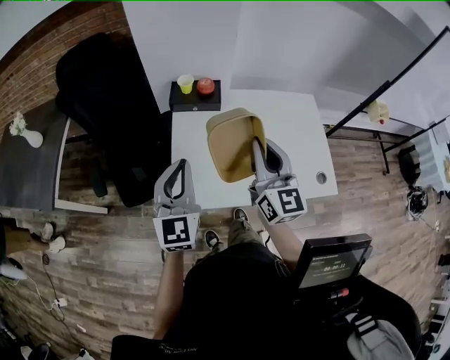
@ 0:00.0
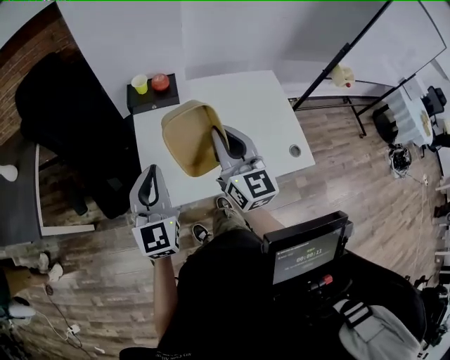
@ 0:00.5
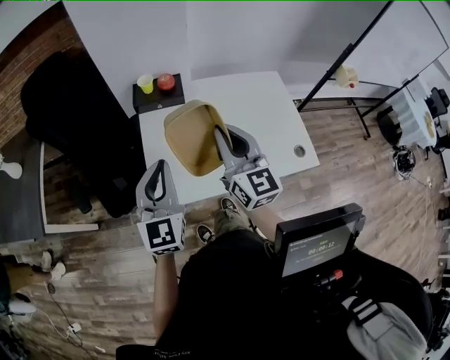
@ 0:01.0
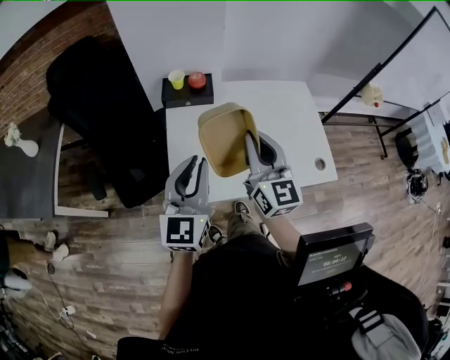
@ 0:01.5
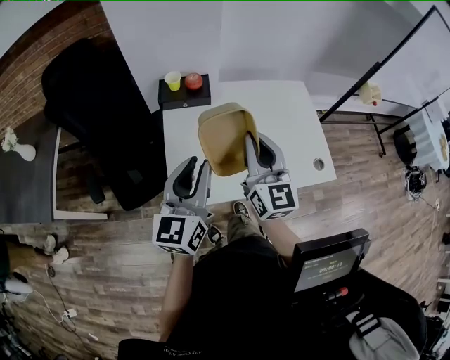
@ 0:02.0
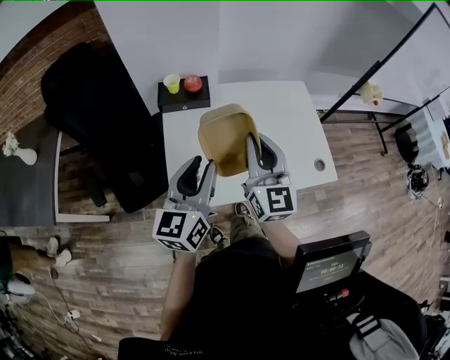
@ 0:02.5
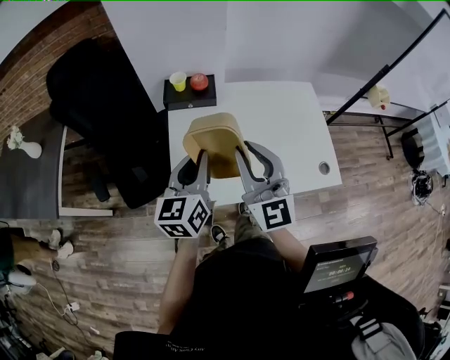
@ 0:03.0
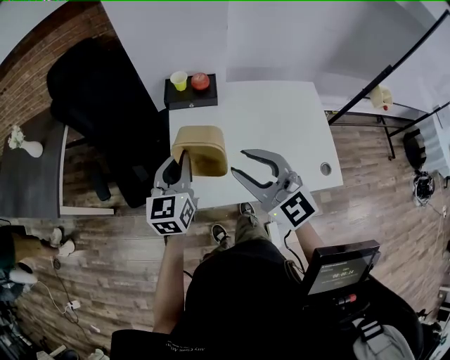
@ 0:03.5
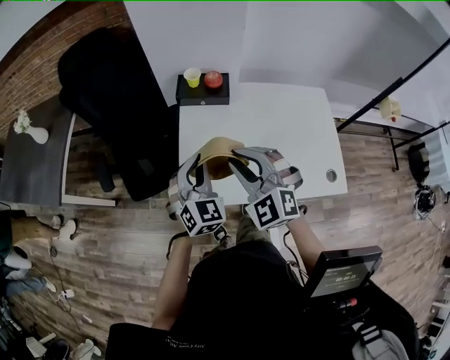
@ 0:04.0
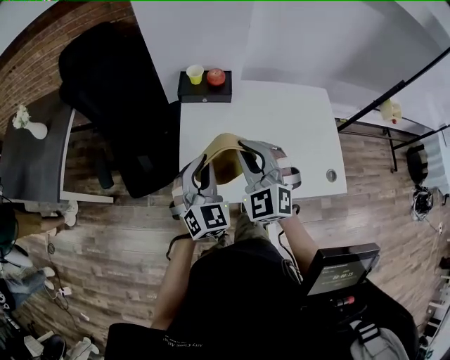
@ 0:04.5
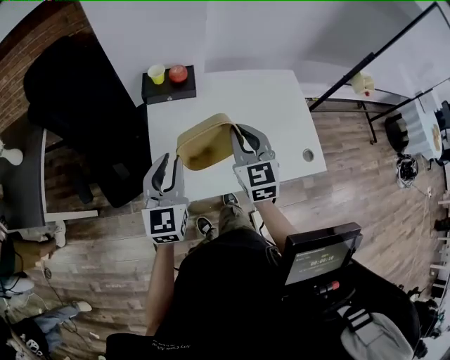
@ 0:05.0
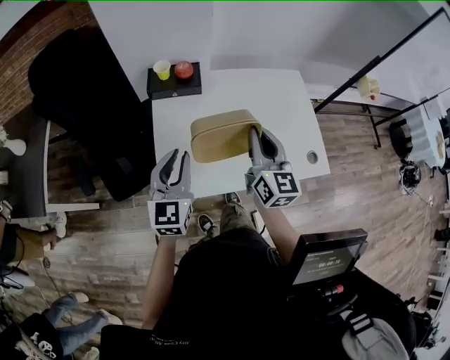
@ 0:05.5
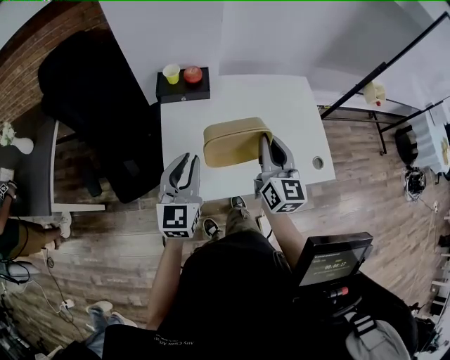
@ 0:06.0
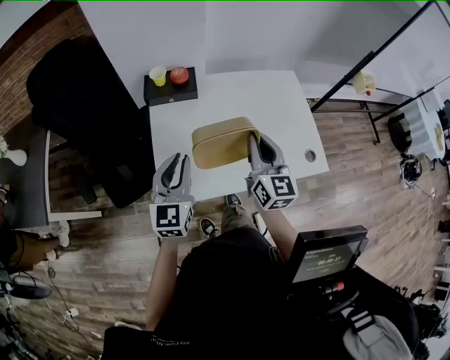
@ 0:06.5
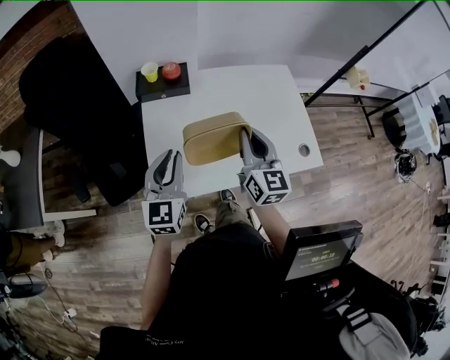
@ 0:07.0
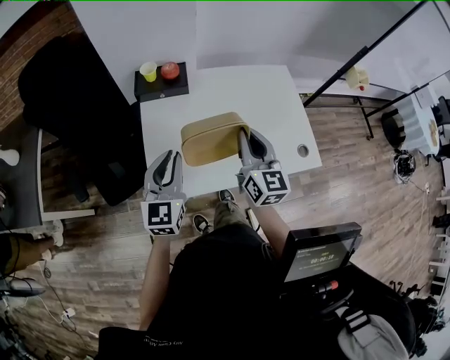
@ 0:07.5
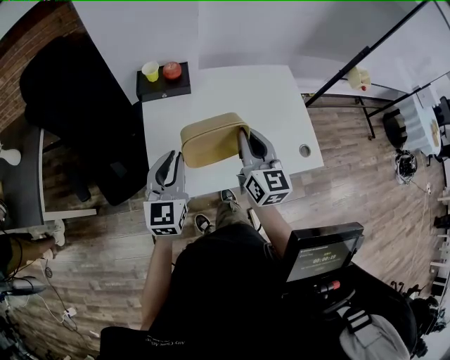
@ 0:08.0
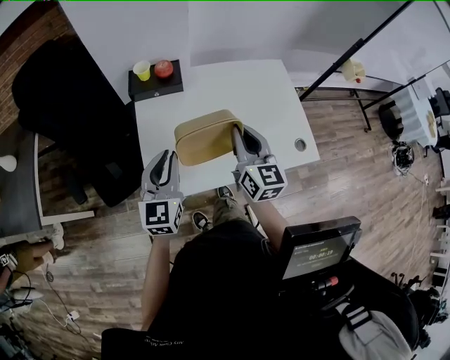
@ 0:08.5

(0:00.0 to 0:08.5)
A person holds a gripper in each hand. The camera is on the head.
0:00.0 - 0:02.0: The left gripper moves roughly 5 cm, and swivels approximately 30 degrees.
0:02.0 - 0:04.0: The right gripper is displaced to the left by approximately 10 cm, and rotates approximately 60 degrees. The left gripper heads downward and forward, covering roughly 10 cm, and rotates around the line of its fingers by some 40 degrees, clockwise from behind.
0:04.0 - 0:06.5: The left gripper rotates about 30 degrees; the right gripper is displaced to the right by some 15 cm, and rolls clockwise, seen from behind, by approximately 60 degrees.
0:06.5 - 0:08.5: The two grippers keep their place.

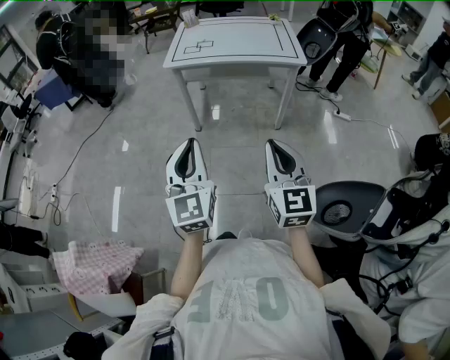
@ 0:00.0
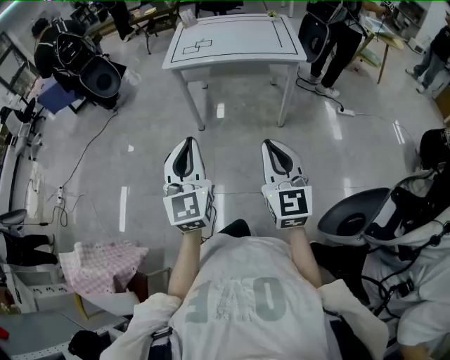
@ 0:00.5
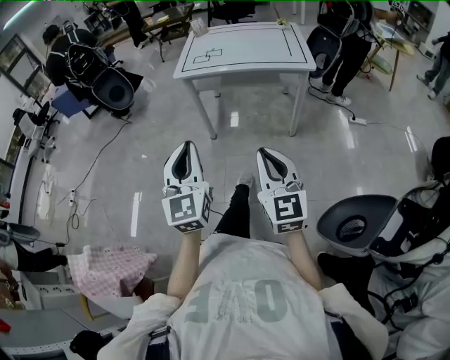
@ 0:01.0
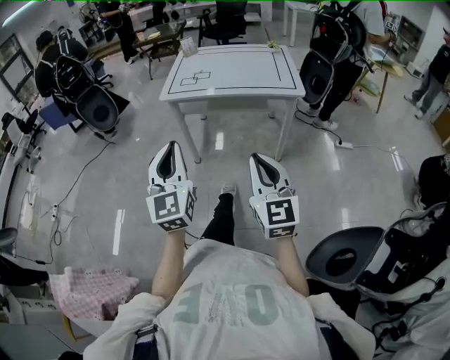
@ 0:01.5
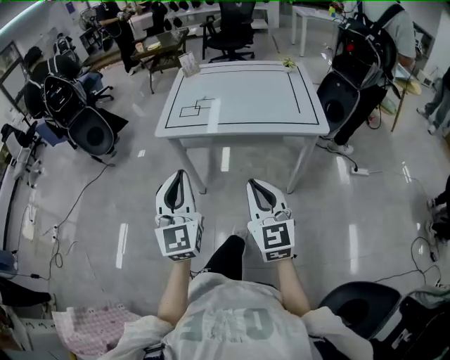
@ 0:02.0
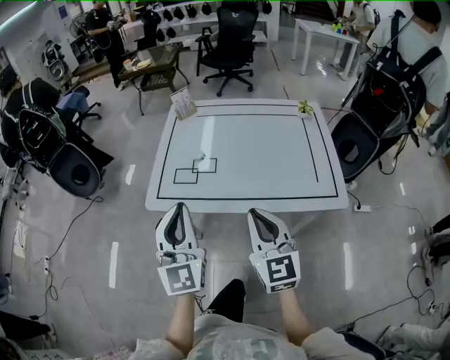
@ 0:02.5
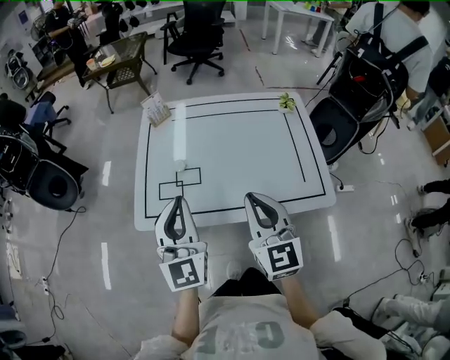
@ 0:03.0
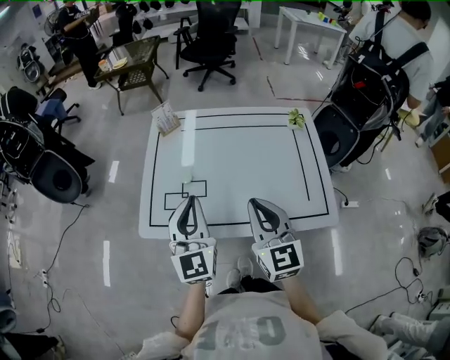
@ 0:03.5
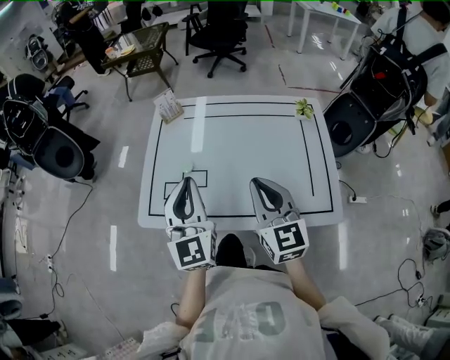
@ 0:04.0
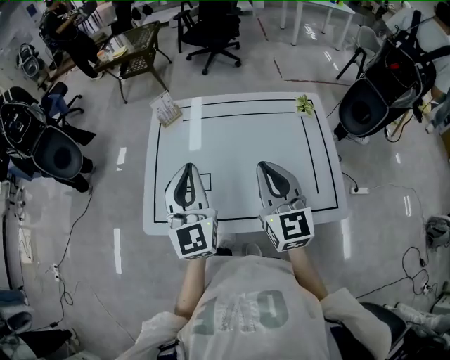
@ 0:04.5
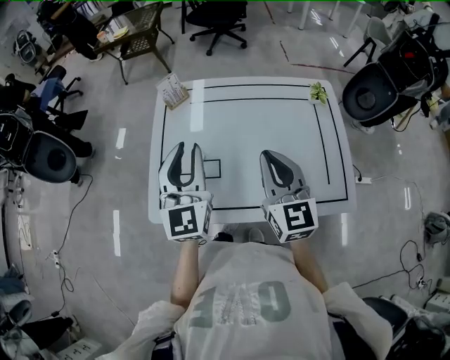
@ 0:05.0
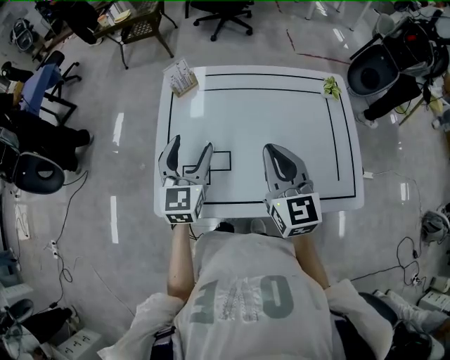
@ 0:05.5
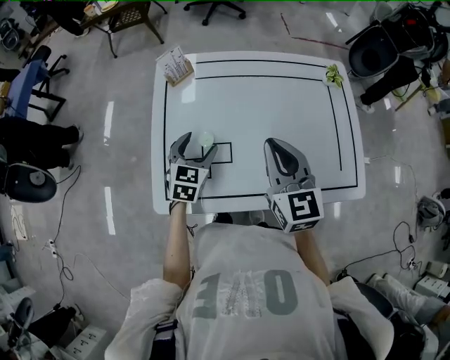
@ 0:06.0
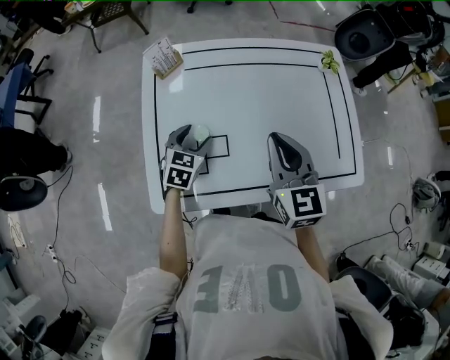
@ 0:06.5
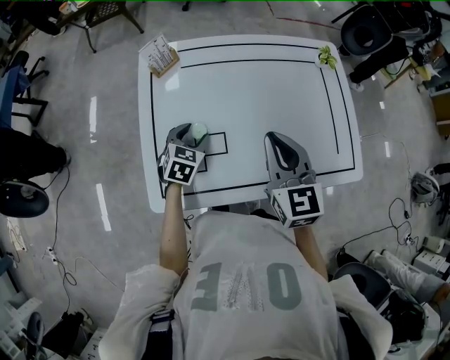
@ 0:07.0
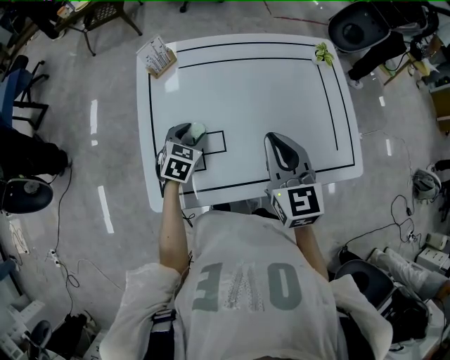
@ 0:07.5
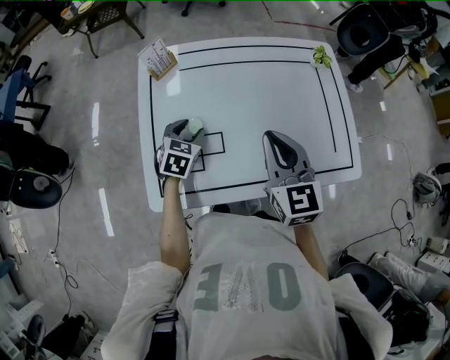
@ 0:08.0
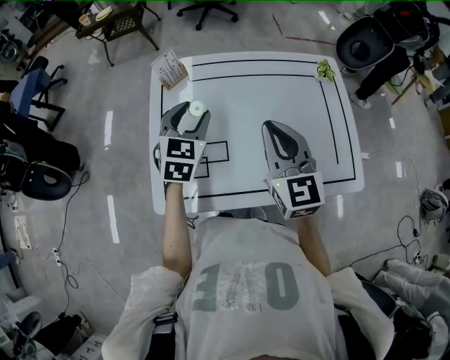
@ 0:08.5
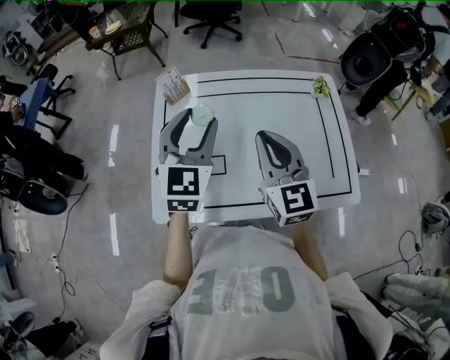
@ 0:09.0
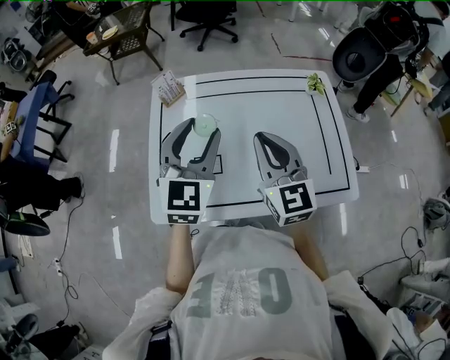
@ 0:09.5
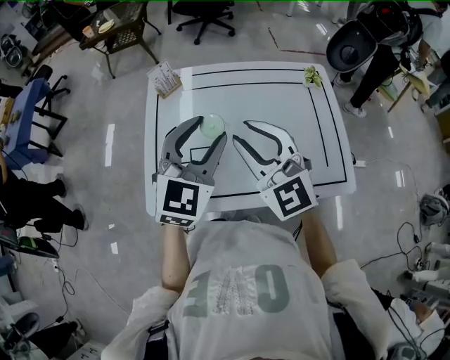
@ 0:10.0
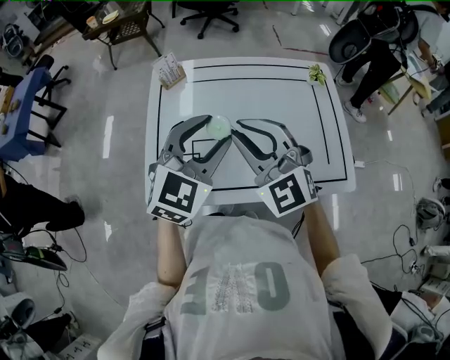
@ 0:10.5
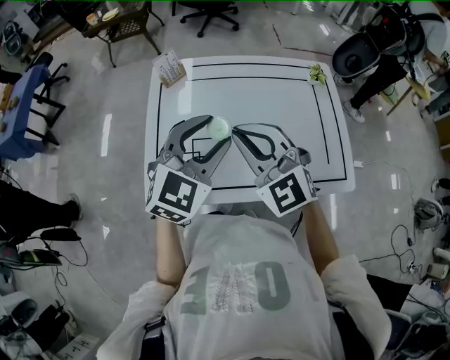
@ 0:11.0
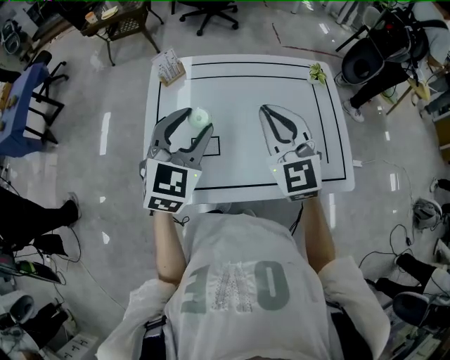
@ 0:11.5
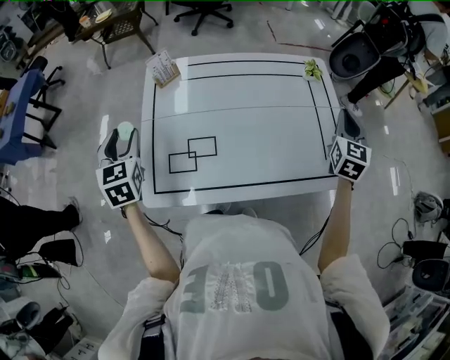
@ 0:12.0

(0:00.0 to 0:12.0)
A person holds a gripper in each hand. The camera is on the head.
0:00.0 - 0:02.0: Both grippers move forward, roughly 35 cm.
0:02.0 - 0:04.0: The pair of grippers is taken forward, roughly 40 cm.
0:04.0 - 0:06.0: The right gripper is displaced forward and to the left by about 10 cm, while the left gripper is displaced downward and forward by some 25 cm, tips its fingers downward by approximately 40 degrees, and opens up.
0:06.0 - 0:08.0: The grippers move only a little.
0:08.0 - 0:10.0: The left gripper moves upward, roughly 25 cm, and angles its fingers upward, by roughly 30 degrees, while the right gripper shifts about 10 cm upward, changes its angle by roughly 40 degrees, and opens up.
0:10.0 - 0:12.0: The right gripper shifts approximately 30 cm to the right, swivels roughly 50 degrees, and closes up, while the left gripper goes some 25 cm to the left, and changes its angle by some 40 degrees.

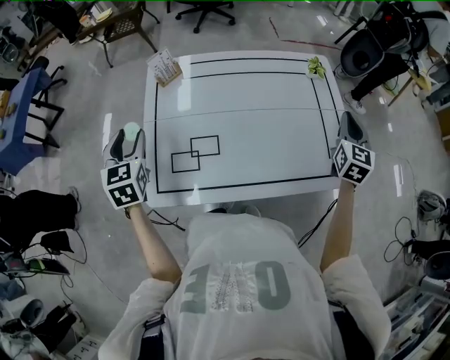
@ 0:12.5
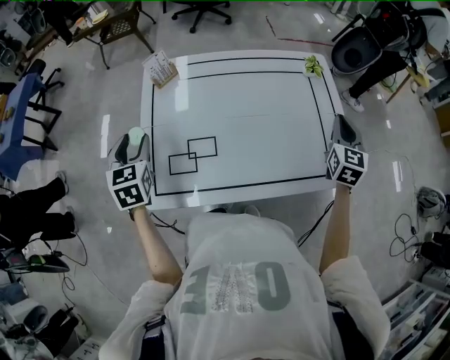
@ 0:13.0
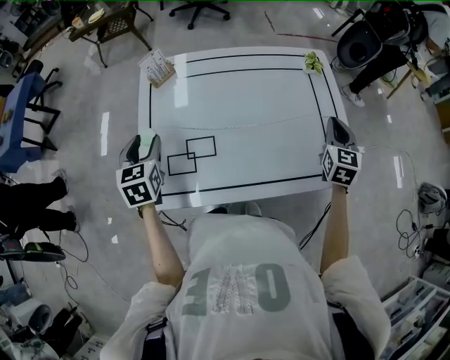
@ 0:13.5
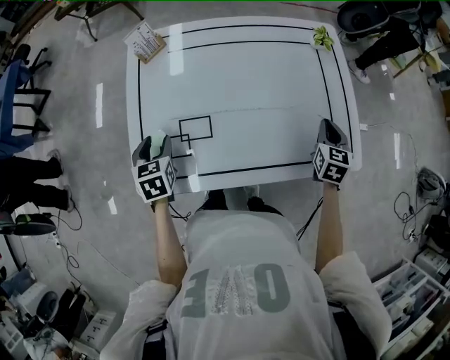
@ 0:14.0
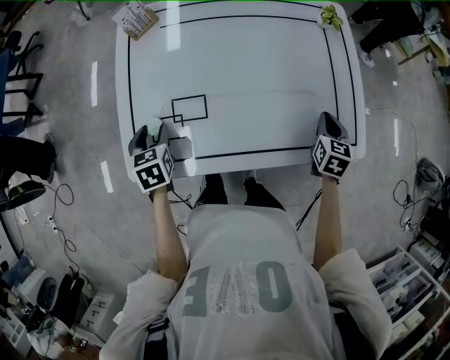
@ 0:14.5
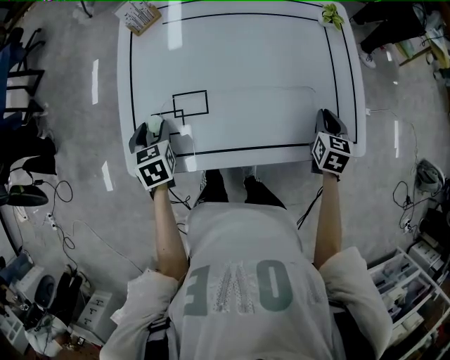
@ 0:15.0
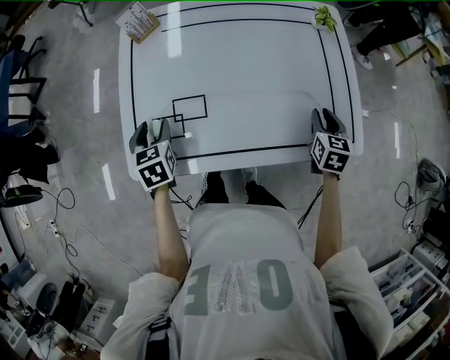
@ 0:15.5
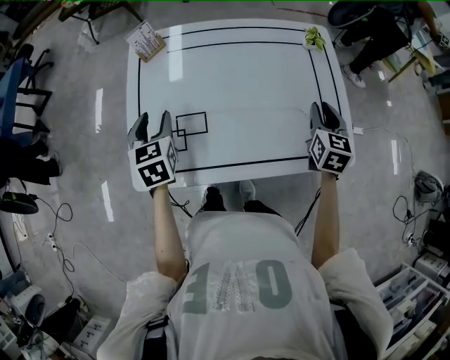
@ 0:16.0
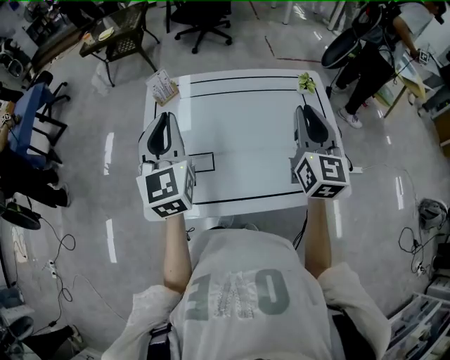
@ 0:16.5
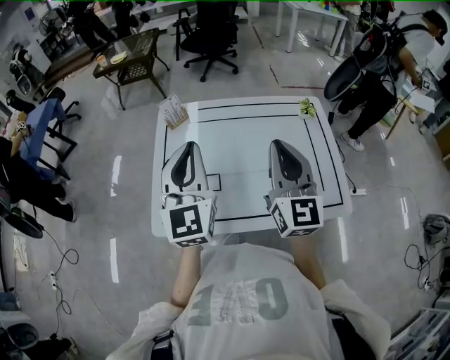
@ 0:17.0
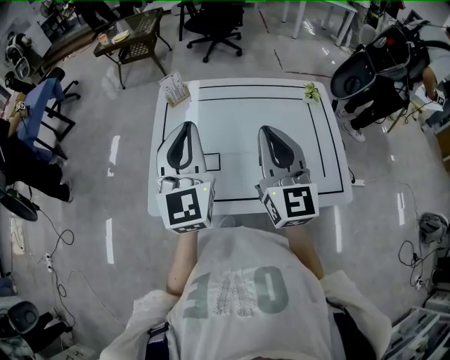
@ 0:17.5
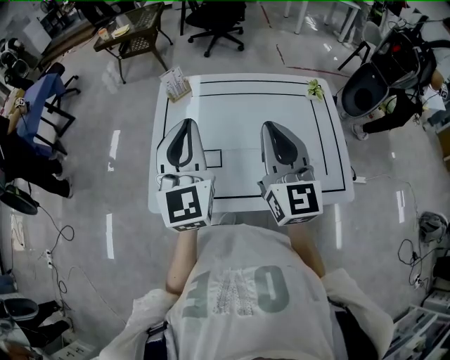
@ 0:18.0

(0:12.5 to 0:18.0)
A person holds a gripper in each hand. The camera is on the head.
0:12.5 - 0:14.5: The two grippers go about 20 cm downward. The left gripper swivels some 30 degrees. Meanwhile the right gripper changes its angle by some 30 degrees.
0:14.5 - 0:16.0: The left gripper travels upward and forward by approximately 10 cm; the right gripper goes roughly 10 cm upward.
0:16.0 - 0:18.0: The left gripper is displaced upward by roughly 20 cm, tilts its fingers some 40 degrees upward, and closes its fingers; the right gripper is displaced to the left and upward by about 30 cm, and tips its fingers upward by about 30 degrees.
